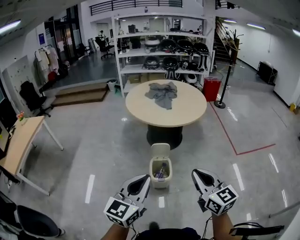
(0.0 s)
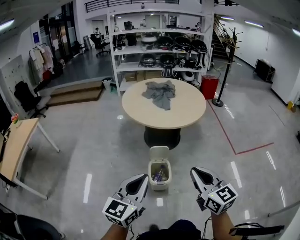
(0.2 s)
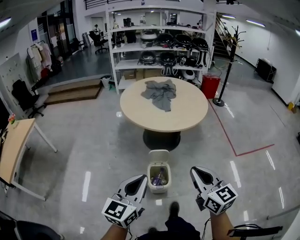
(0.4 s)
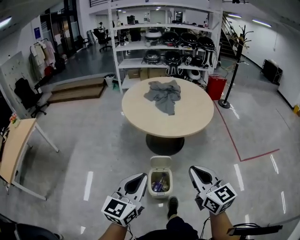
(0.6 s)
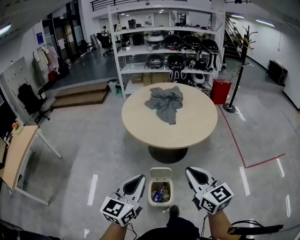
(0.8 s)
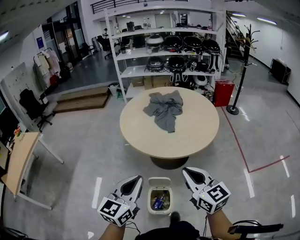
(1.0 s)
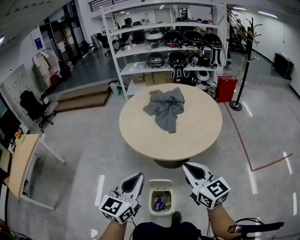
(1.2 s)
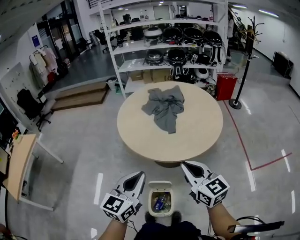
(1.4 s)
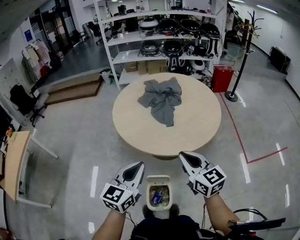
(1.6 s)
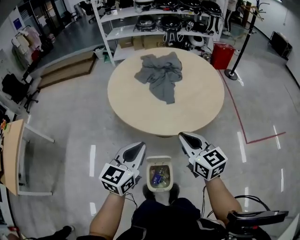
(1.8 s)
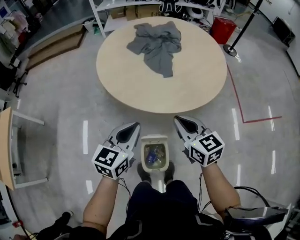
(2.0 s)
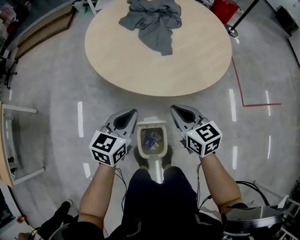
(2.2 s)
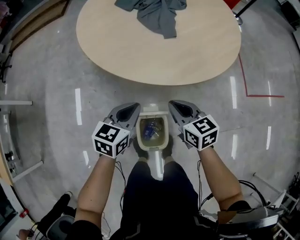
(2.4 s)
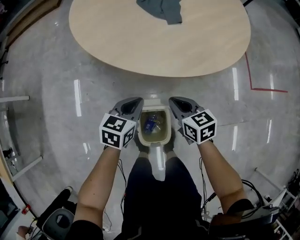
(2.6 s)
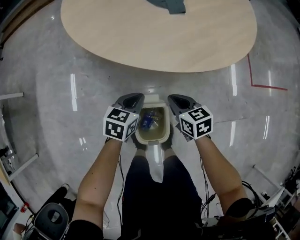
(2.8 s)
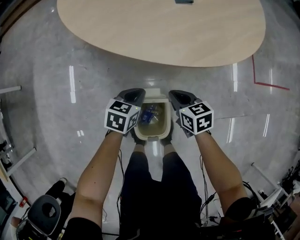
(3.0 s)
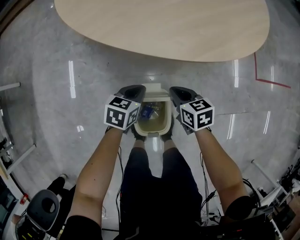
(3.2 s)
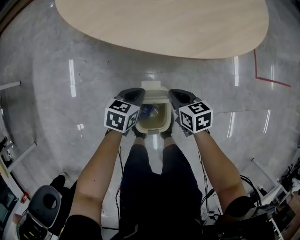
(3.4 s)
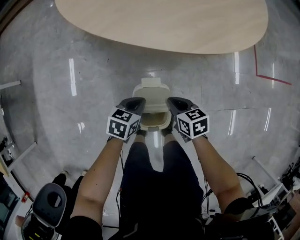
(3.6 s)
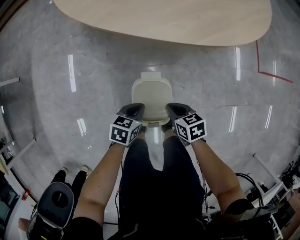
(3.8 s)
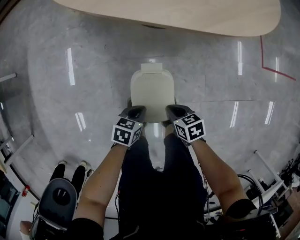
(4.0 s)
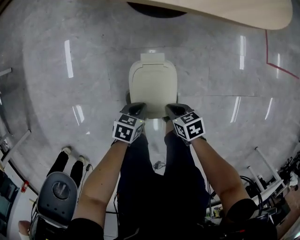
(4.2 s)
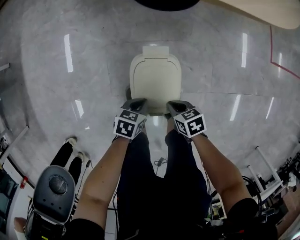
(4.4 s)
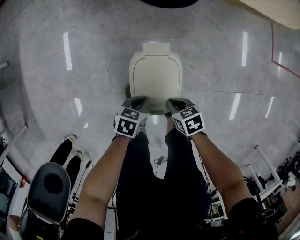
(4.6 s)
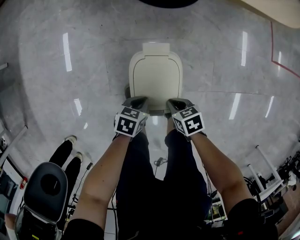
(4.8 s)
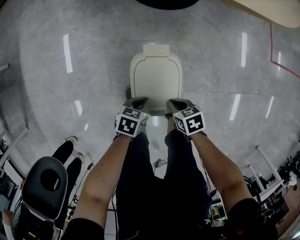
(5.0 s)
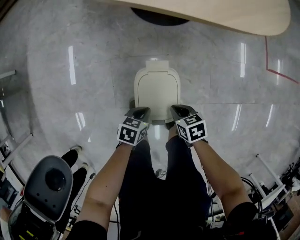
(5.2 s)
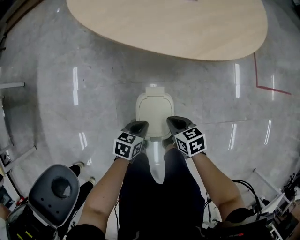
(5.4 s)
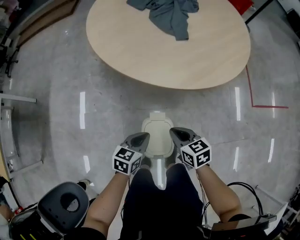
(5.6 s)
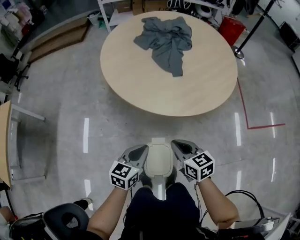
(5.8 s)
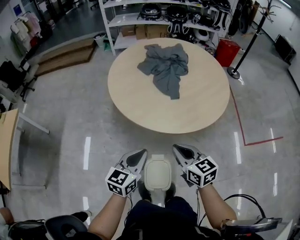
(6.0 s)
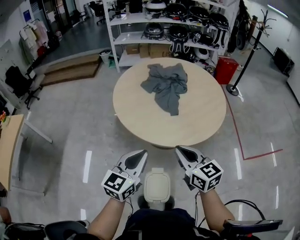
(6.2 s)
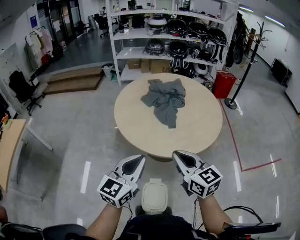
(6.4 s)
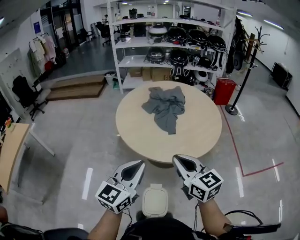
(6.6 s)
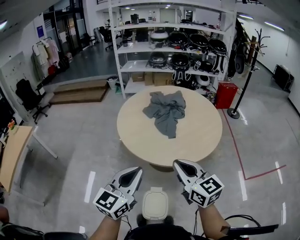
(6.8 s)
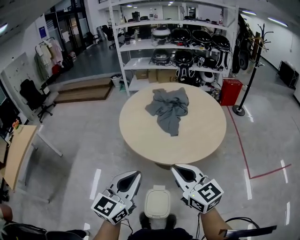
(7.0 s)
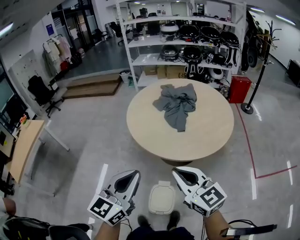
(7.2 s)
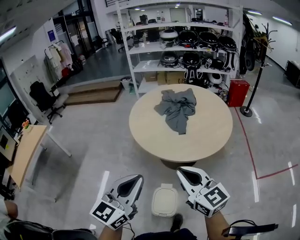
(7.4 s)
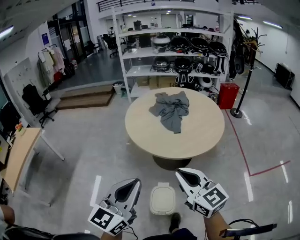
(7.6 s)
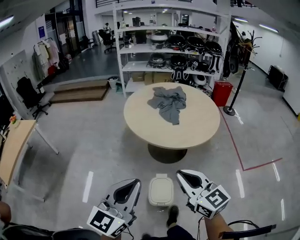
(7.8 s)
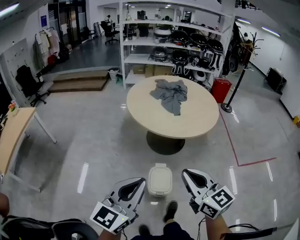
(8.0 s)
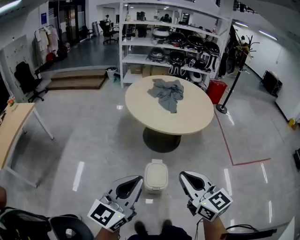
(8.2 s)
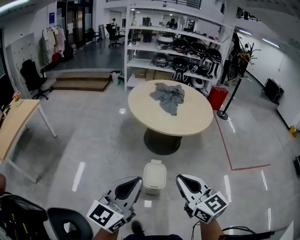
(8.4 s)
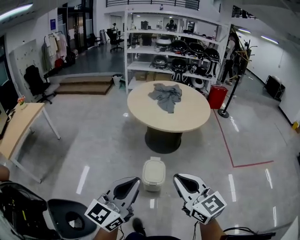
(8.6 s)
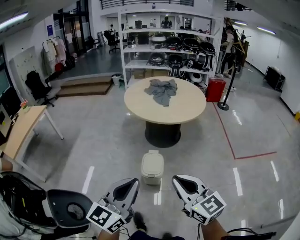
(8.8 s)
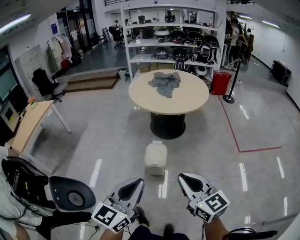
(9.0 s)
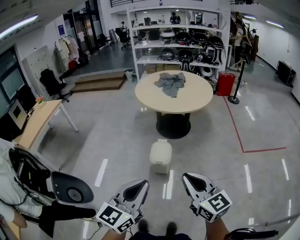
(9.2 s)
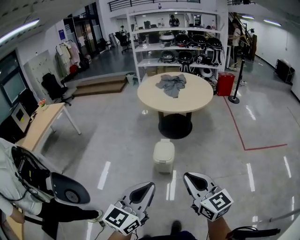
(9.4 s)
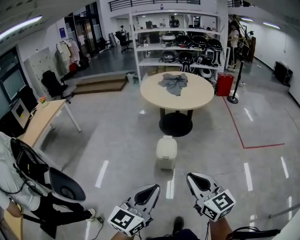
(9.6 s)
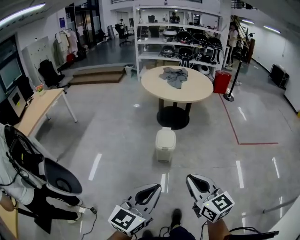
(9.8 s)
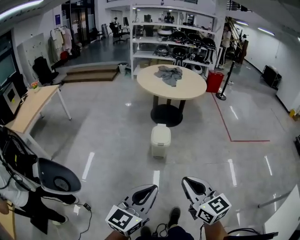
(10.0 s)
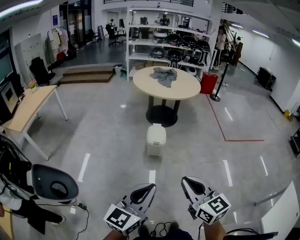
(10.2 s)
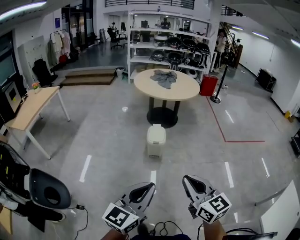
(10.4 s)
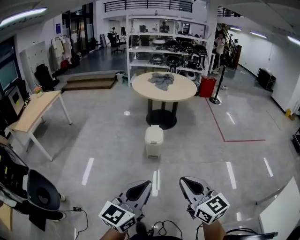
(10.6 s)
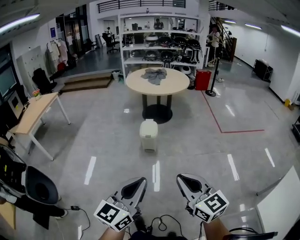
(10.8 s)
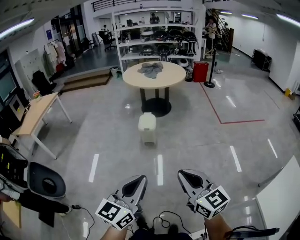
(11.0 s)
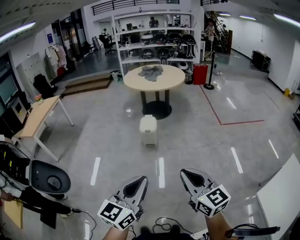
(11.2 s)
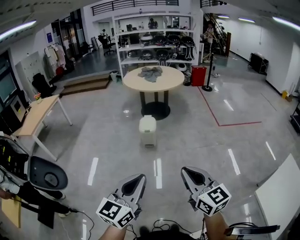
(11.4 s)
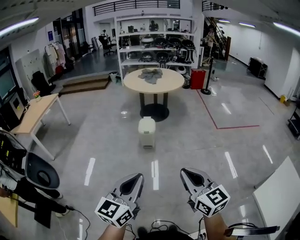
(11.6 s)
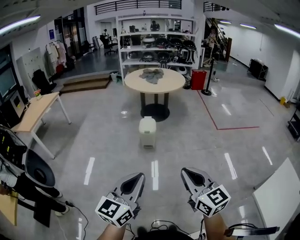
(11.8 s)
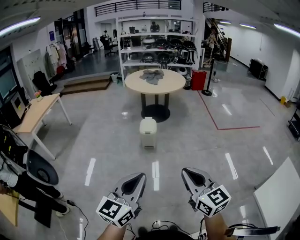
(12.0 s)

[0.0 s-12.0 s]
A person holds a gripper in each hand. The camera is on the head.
0.0 to 1.6 s: The two grippers travel together, forward, some 50 cm.
1.6 to 3.0 s: The grippers both shift downward by some 50 cm. The right gripper tips its fingers downward by some 40 degrees, while the left gripper tips its fingers downward by roughly 40 degrees.
3.0 to 4.4 s: The right gripper changes place by about 30 cm, and turns by roughly 20 degrees. The left gripper ends up some 30 cm from where it was.
4.4 to 6.0 s: Both grippers move upward, approximately 50 cm. The left gripper angles its fingers upward, by about 40 degrees, while the right gripper tilts its fingers roughly 40 degrees upward.
6.0 to 7.6 s: The grippers both shift upward and backward by some 25 cm. The left gripper turns by about 30 degrees, while the right gripper changes its angle by approximately 30 degrees.
7.6 to 9.0 s: Both grippers move backward, approximately 40 cm.
9.0 to 10.4 s: Both grippers move backward, about 30 cm.
10.4 to 12.0 s: Both grippers travel together backward and to the right, some 20 cm.

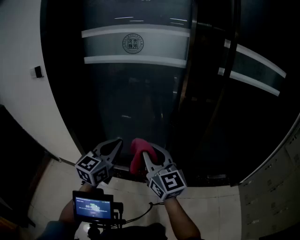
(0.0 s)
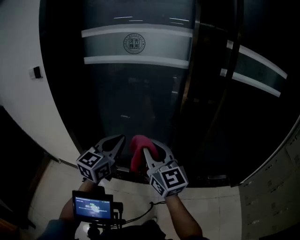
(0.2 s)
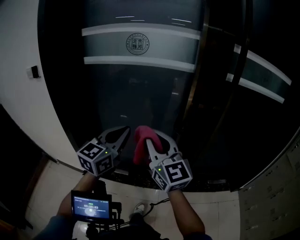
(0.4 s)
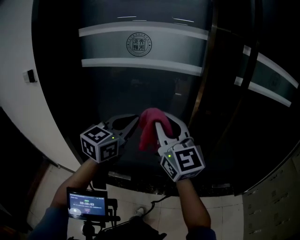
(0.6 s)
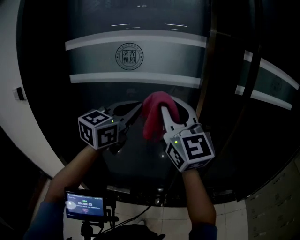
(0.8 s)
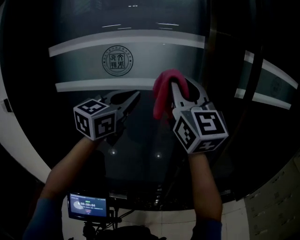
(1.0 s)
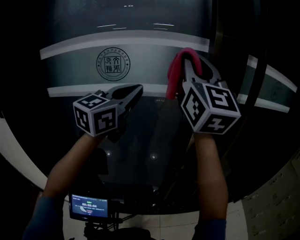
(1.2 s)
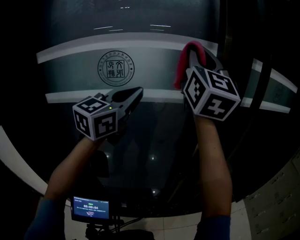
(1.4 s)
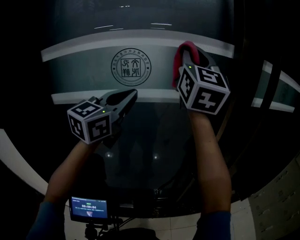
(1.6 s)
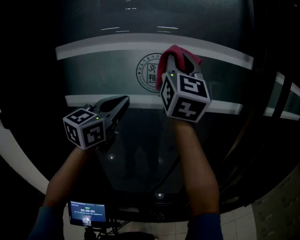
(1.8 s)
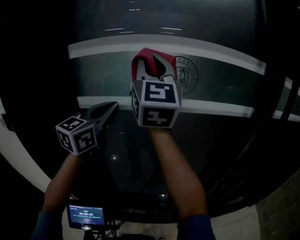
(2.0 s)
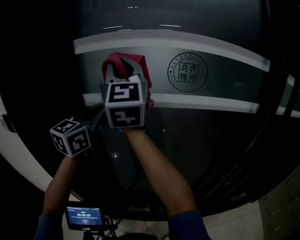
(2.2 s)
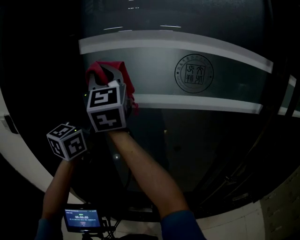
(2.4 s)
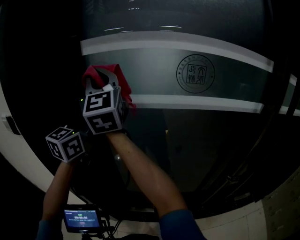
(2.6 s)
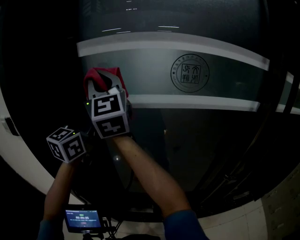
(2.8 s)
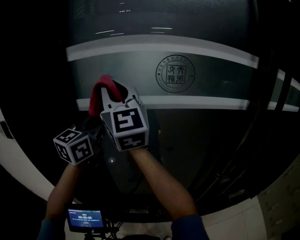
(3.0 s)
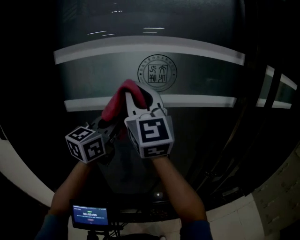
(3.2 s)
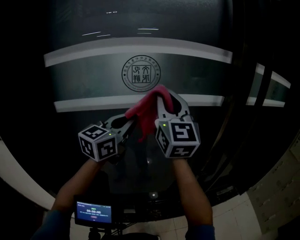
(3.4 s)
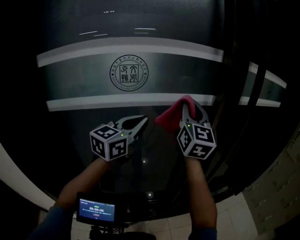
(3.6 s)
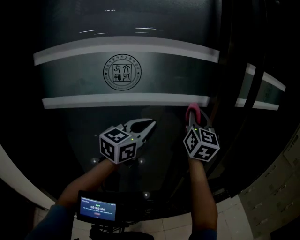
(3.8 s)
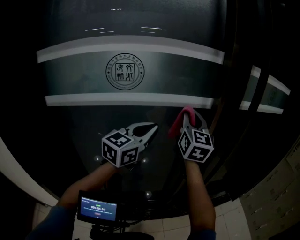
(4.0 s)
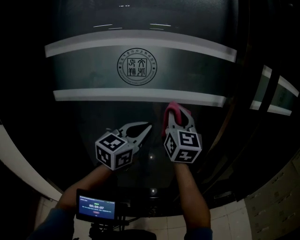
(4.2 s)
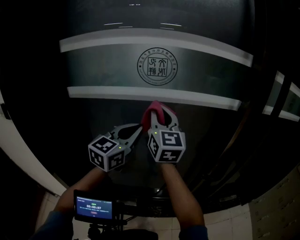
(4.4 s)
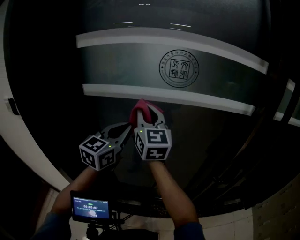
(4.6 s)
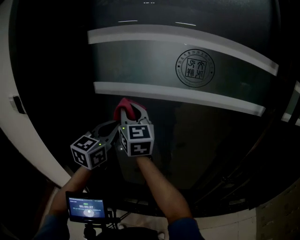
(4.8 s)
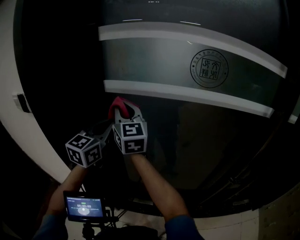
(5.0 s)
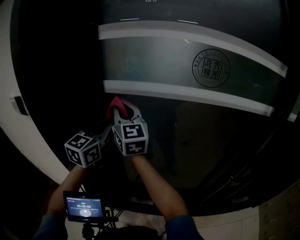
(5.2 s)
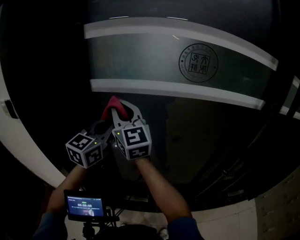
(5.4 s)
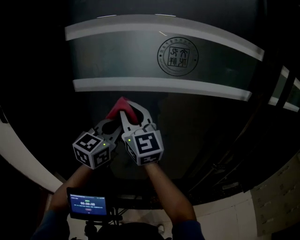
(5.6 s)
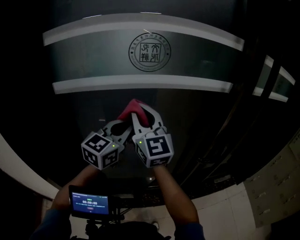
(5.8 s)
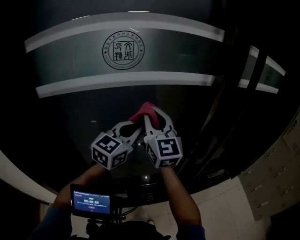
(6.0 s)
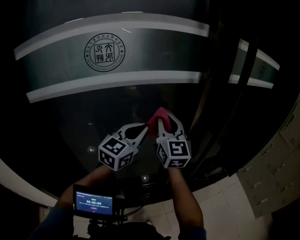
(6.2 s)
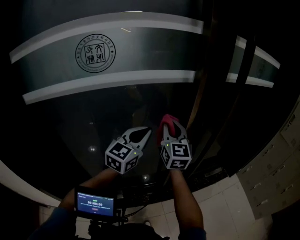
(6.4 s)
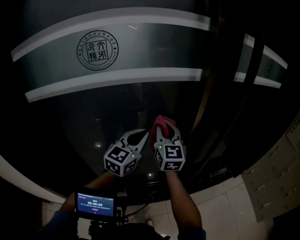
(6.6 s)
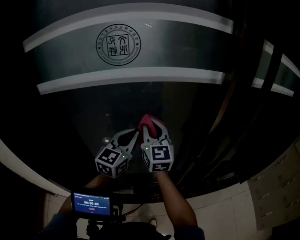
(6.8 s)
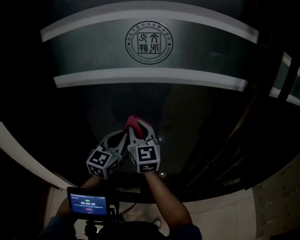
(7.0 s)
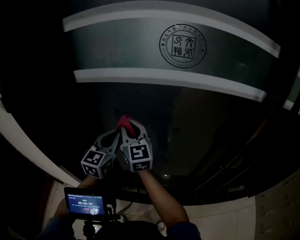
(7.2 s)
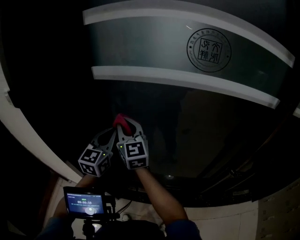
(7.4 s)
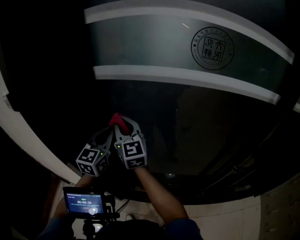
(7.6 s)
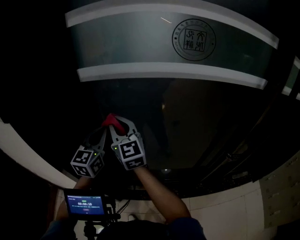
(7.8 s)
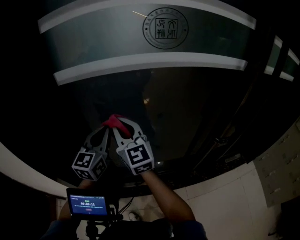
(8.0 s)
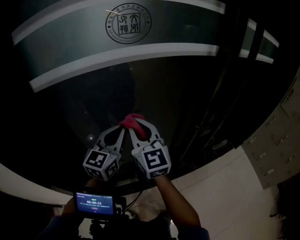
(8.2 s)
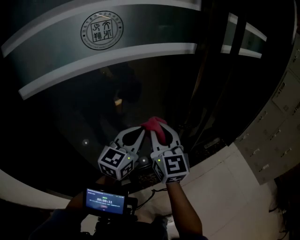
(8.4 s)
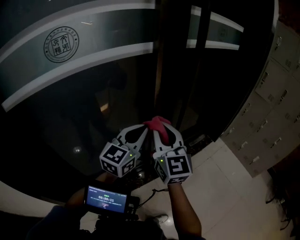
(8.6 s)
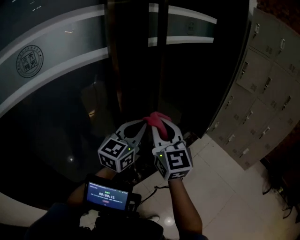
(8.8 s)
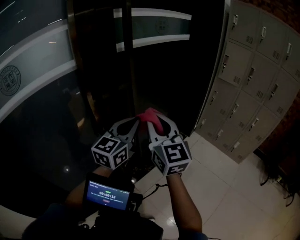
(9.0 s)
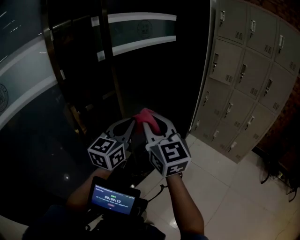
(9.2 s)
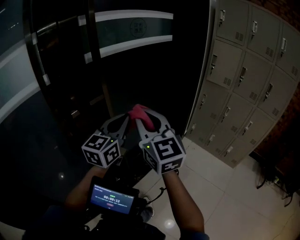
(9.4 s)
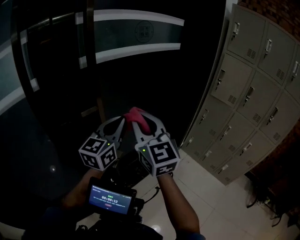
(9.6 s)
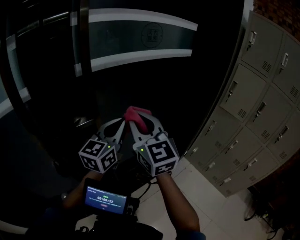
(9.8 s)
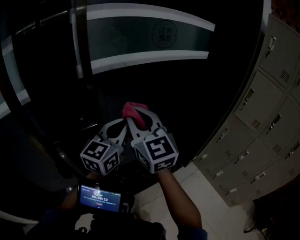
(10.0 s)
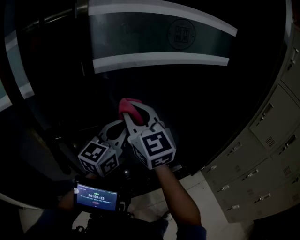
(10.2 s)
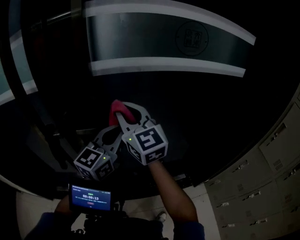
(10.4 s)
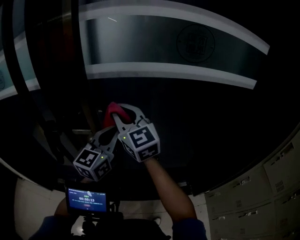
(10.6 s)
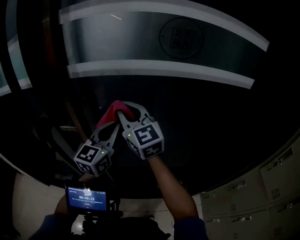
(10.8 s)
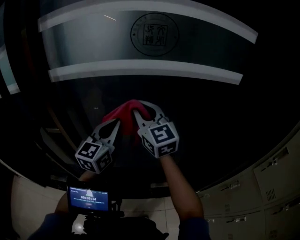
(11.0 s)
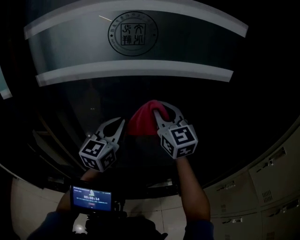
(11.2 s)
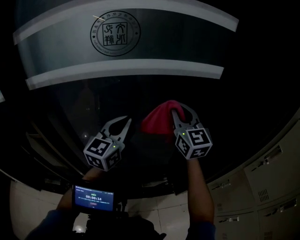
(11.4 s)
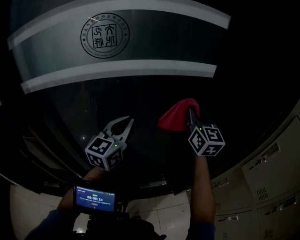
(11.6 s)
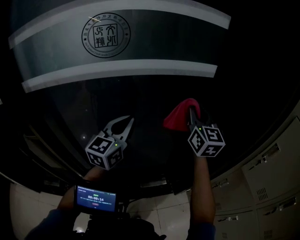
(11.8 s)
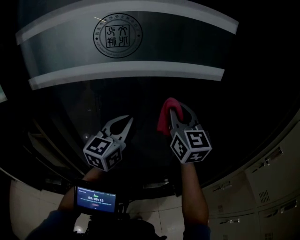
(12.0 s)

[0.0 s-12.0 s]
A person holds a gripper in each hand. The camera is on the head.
0.0 to 1.6 s: Both grippers are carried some 40 cm. The right gripper turns by about 40 degrees. The left gripper turns by approximately 20 degrees.
1.6 to 3.0 s: The left gripper ends up about 25 cm from where it was. The right gripper moves about 40 cm, and changes its angle by about 30 degrees.
3.0 to 4.4 s: The right gripper turns by approximately 20 degrees.
6.0 to 7.6 s: The left gripper moves about 35 cm, and turns by about 40 degrees. Meanwhile the right gripper shifts by roughly 40 cm, and swivels some 30 degrees.
7.6 to 9.0 s: The two grippers travel together, about 80 cm. The right gripper changes its angle by about 60 degrees, while the left gripper changes its angle by about 60 degrees.
9.0 to 10.4 s: The right gripper shifts by approximately 30 cm, and rotates approximately 50 degrees, while the left gripper ends up some 25 cm from where it was, and rotates about 40 degrees.
10.4 to 12.0 s: The left gripper shifts roughly 25 cm to the right and forward; the right gripper shifts roughly 40 cm to the right.
